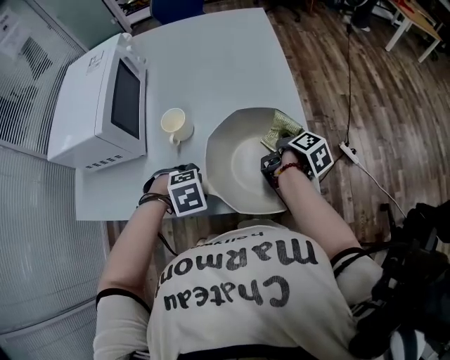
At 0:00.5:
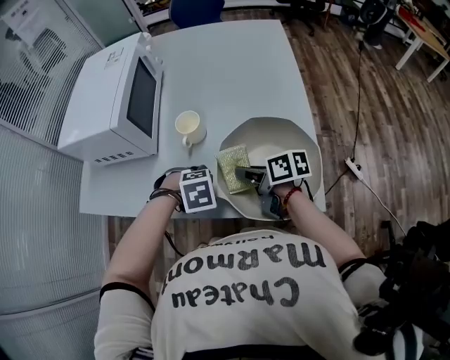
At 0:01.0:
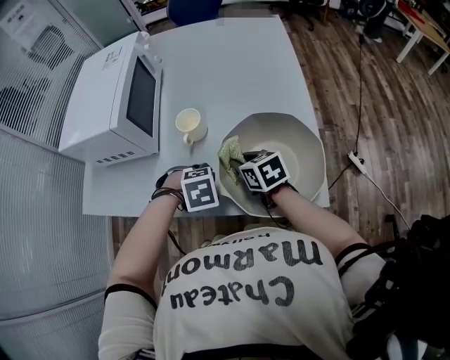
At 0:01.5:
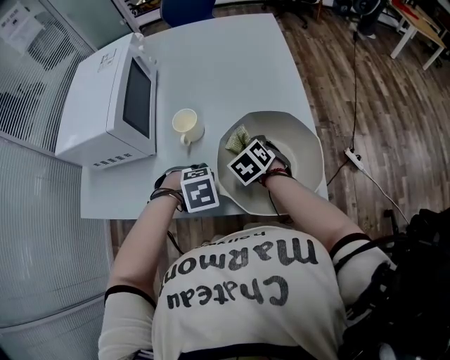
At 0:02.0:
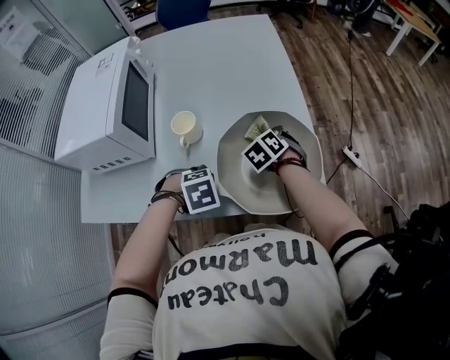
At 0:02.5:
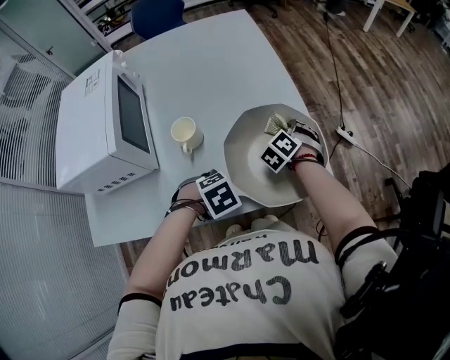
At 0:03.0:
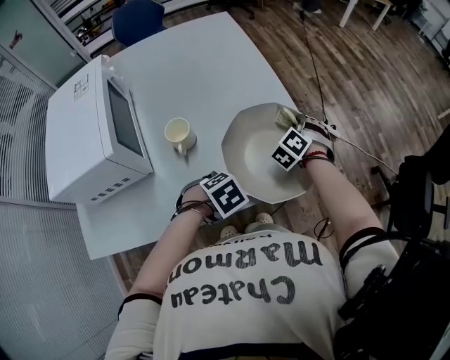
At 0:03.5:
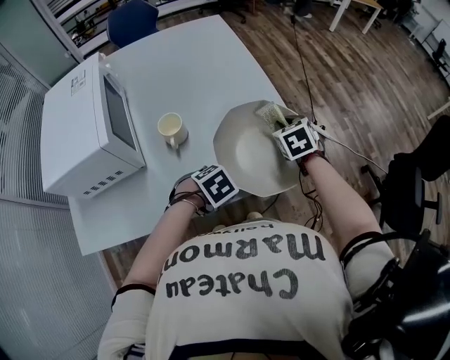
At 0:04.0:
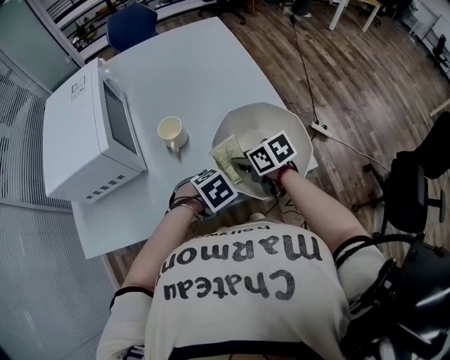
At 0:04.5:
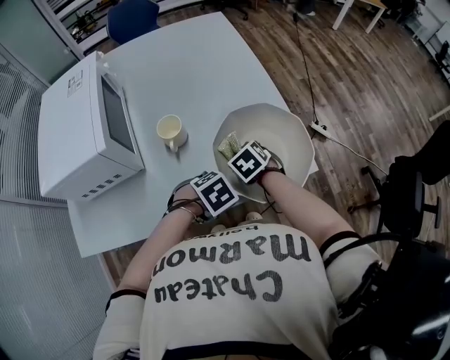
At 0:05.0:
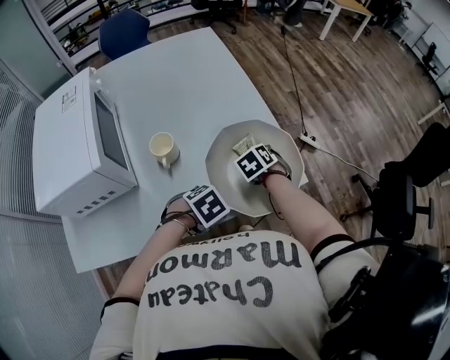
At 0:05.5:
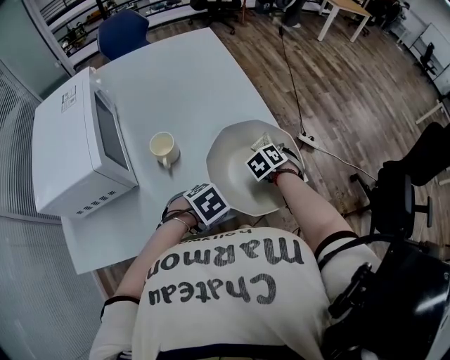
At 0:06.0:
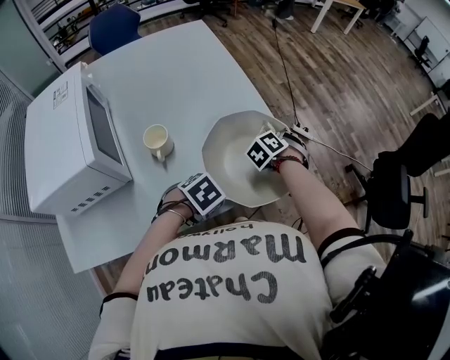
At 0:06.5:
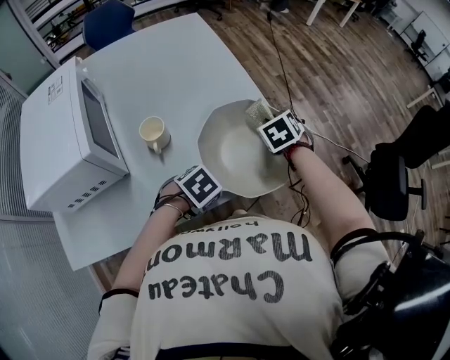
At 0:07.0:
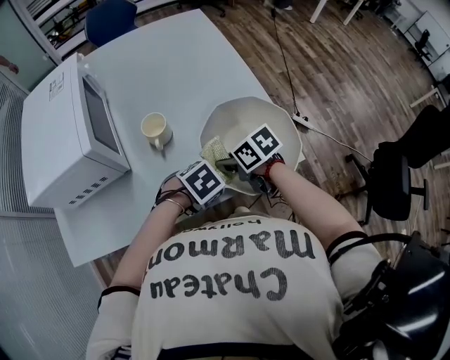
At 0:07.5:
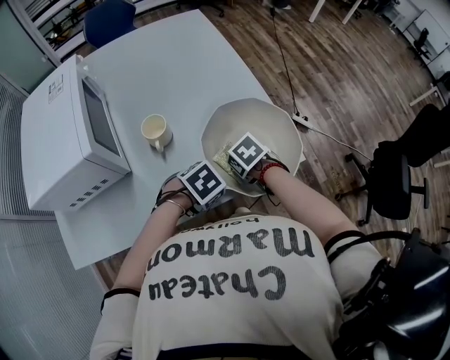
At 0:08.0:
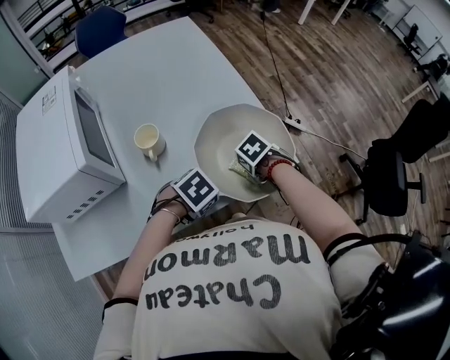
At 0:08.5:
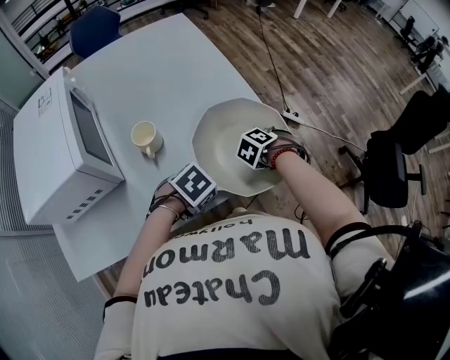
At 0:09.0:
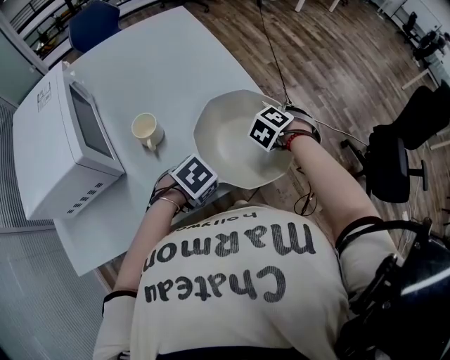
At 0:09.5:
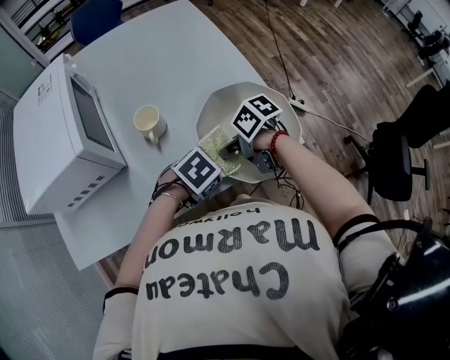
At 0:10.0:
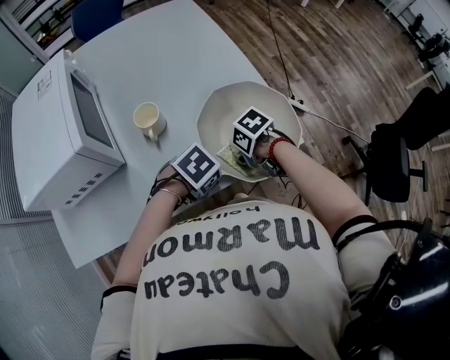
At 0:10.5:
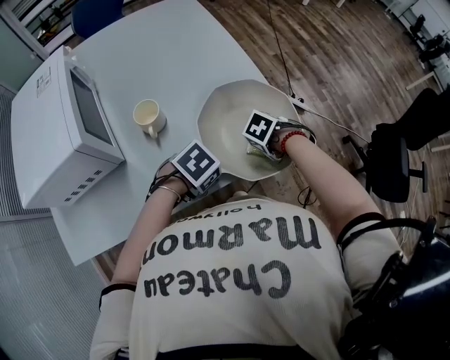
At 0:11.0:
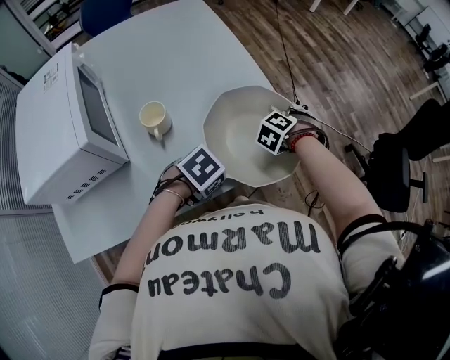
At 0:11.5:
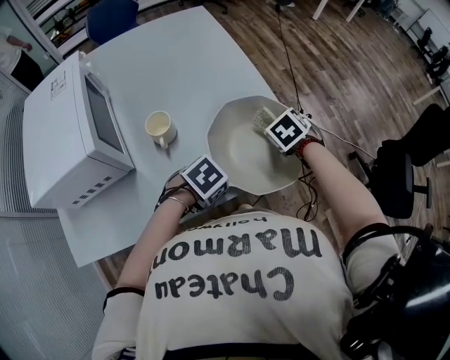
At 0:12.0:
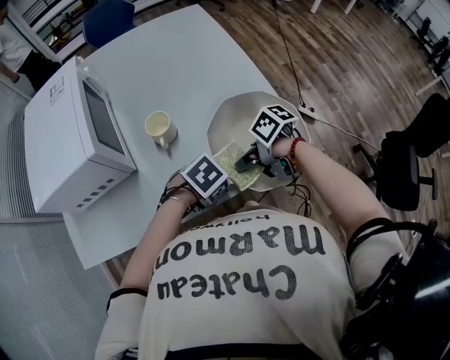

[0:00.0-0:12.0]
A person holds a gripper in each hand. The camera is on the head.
0:00.0 to 0:02.0: The right gripper twists approximately 110 degrees counterclockwise, seen from behind.
0:02.0 to 0:04.0: The right gripper moves some 15 cm, and swivels roughly 60 degrees.
0:04.0 to 0:06.0: The right gripper ends up about 20 cm from where it was, and rotates about 70 degrees.
0:06.0 to 0:08.0: The right gripper goes upward and returns, roughly 5 cm each way, and points its fingers roughly 30 degrees further downward.
0:10.0 to 0:12.0: The right gripper is displaced upward by about 5 cm, and points its fingers approximately 30 degrees further upward.

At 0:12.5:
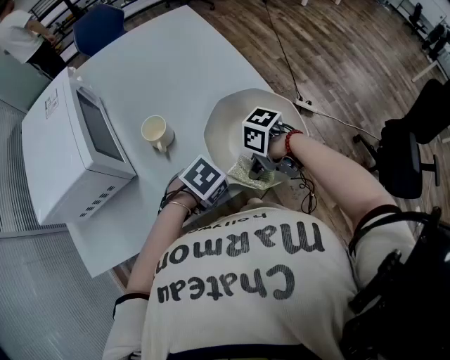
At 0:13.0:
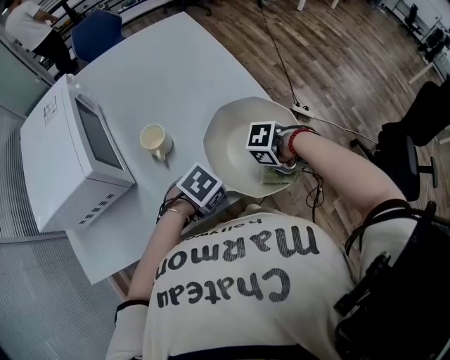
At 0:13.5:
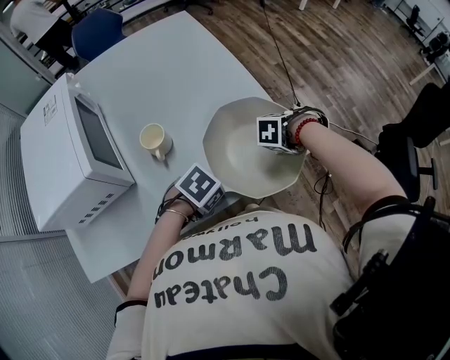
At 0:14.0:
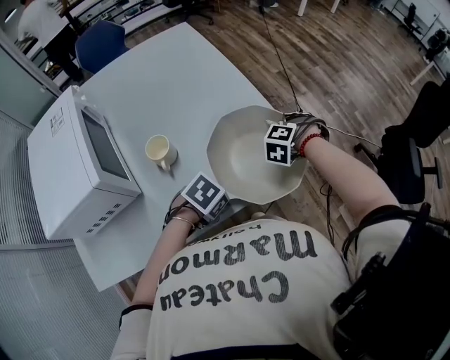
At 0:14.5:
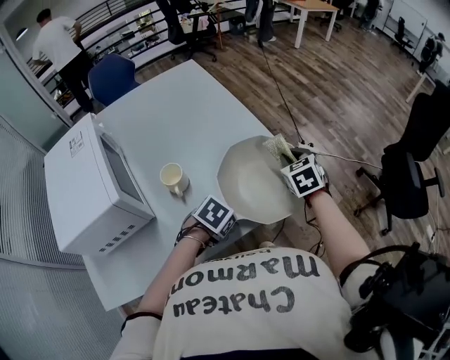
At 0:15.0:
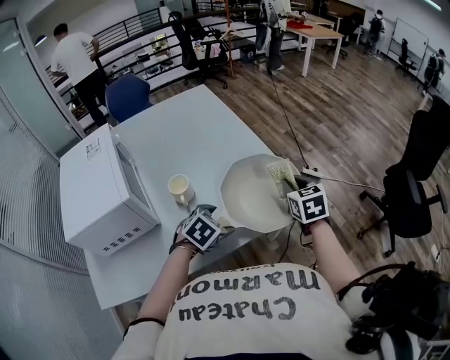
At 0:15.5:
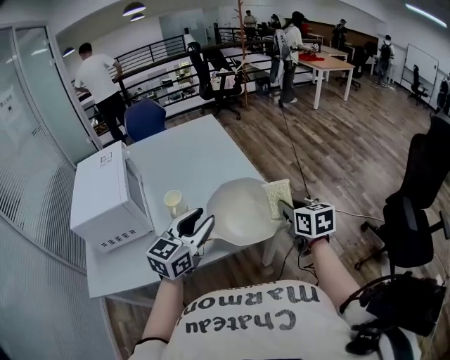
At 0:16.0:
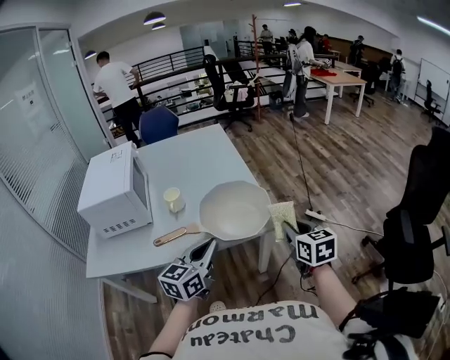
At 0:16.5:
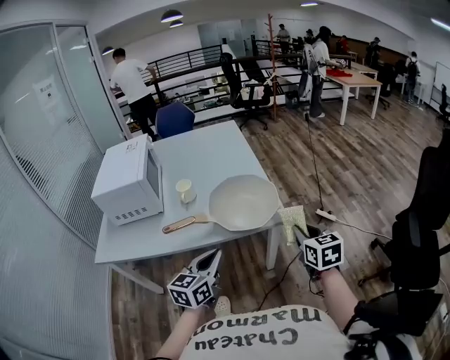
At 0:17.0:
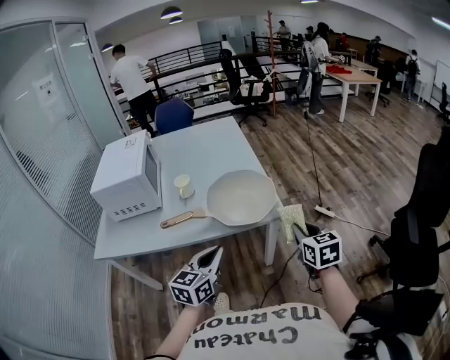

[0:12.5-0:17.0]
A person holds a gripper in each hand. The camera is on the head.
0:12.5 to 0:14.5: The right gripper changes place by some 20 cm, and rotates roughly 80 degrees.
0:14.5 to 0:17.0: The left gripper ends up roughly 25 cm from where it was, points its fingers approximately 60 degrees further upward, and closes up; the right gripper shifts by some 30 cm, and turns by approximately 30 degrees.

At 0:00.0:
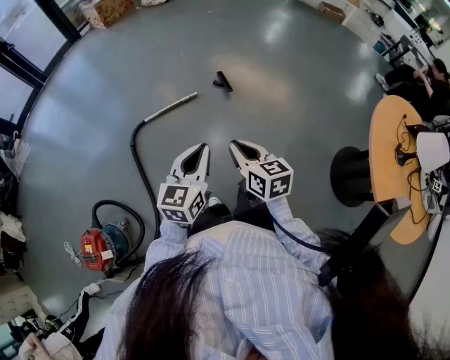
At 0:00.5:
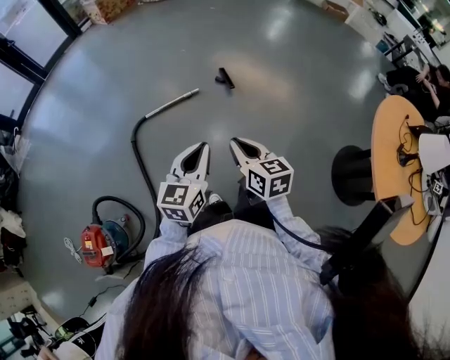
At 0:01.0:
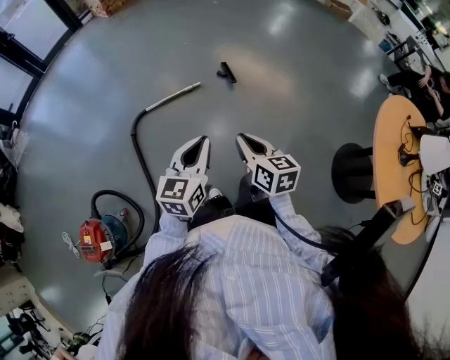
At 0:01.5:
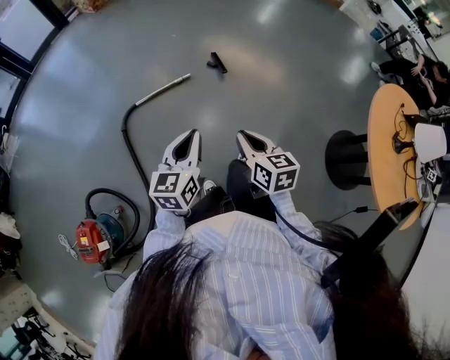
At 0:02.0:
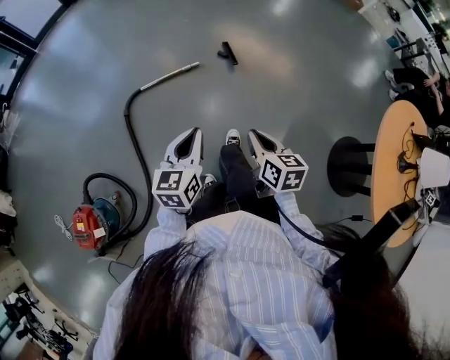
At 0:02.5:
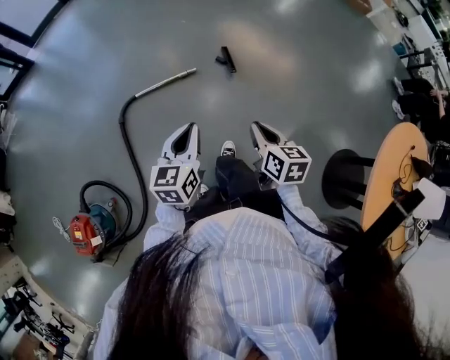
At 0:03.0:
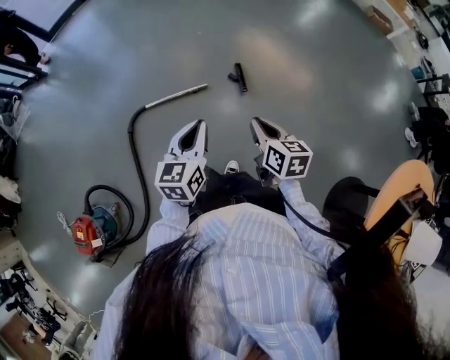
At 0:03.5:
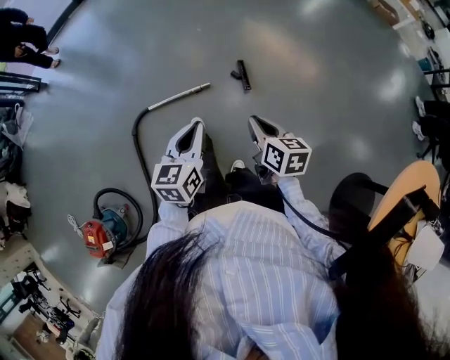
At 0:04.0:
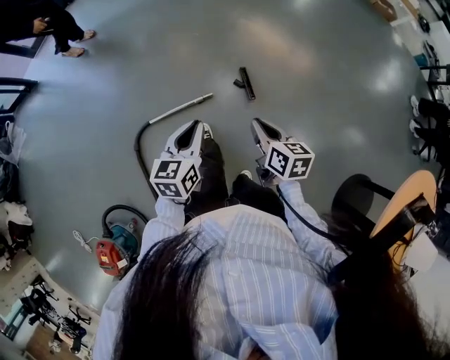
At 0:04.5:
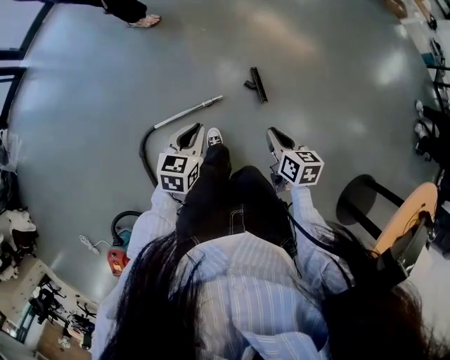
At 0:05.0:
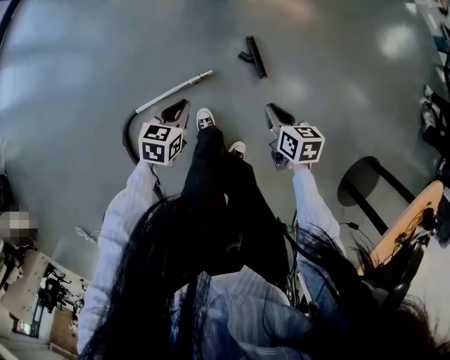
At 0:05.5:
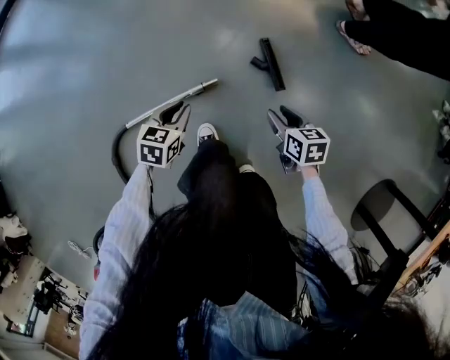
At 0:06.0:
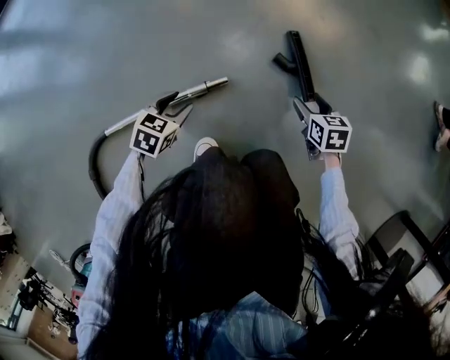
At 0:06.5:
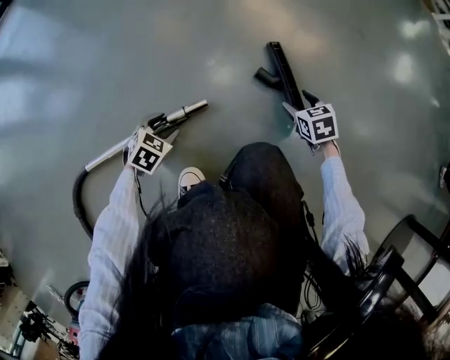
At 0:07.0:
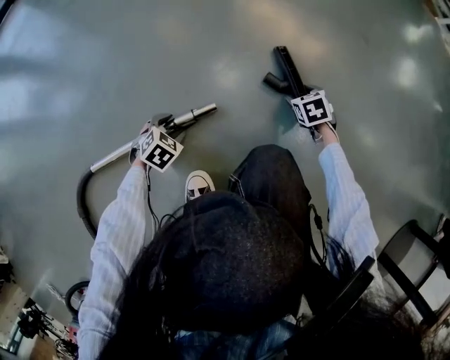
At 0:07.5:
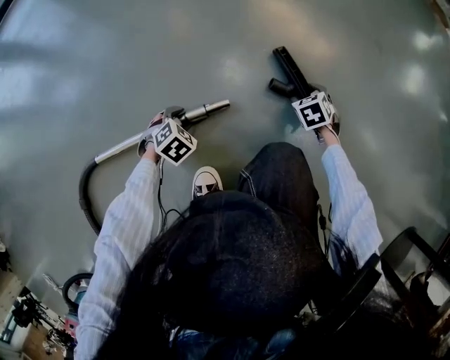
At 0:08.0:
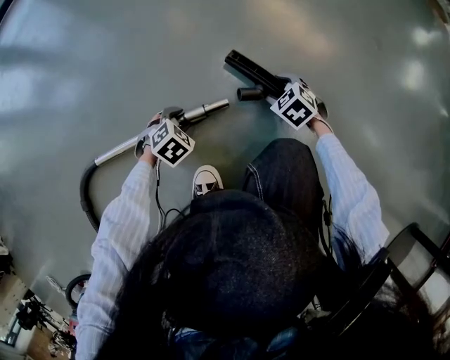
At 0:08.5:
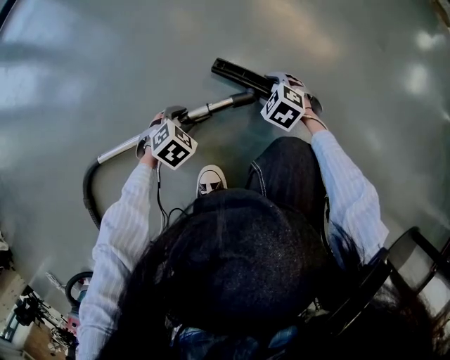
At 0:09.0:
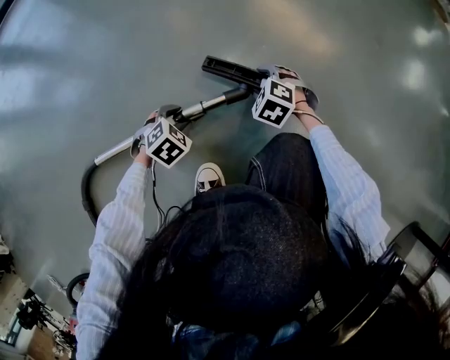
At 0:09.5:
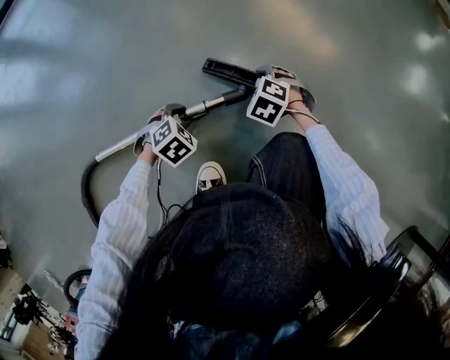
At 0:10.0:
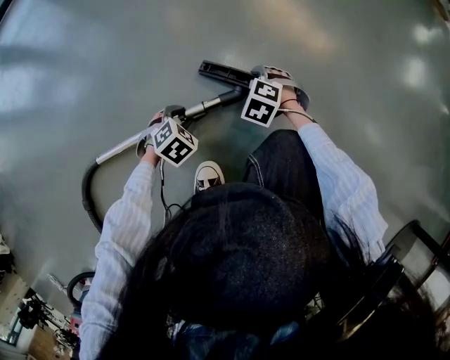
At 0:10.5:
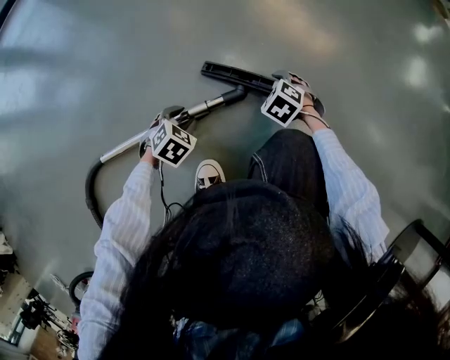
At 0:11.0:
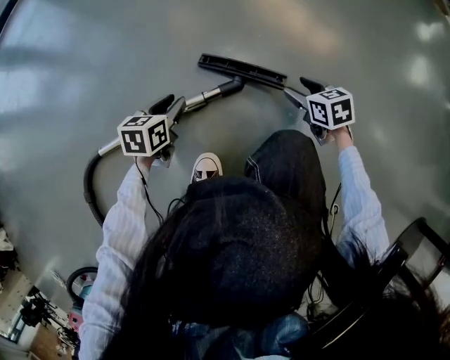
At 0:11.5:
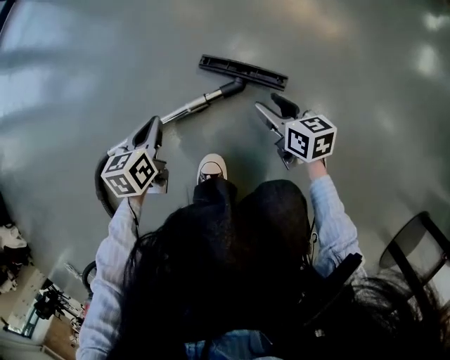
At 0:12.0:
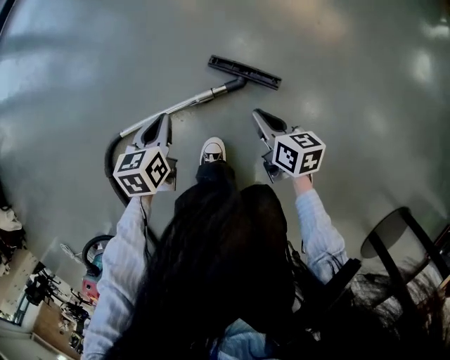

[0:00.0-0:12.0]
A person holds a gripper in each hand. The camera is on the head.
0:00.0 to 0:02.0: The right gripper moves downward, approximately 5 cm. The left gripper is displaced downward and forward by some 5 cm.
0:02.0 to 0:04.0: Both grippers are carried forward, about 40 cm.
0:04.0 to 0:06.0: The grippers both shift downward by roughly 70 cm. The right gripper swivels roughly 30 degrees, and opens up; the left gripper turns by roughly 40 degrees, and opens its fingers.
0:06.0 to 0:08.0: The right gripper heads downward, to the left and forward, covering approximately 15 cm, and rotates around the line of its fingers by some 50 degrees, counterclockwise from behind. The left gripper moves downward, about 15 cm, and swivels roughly 30 degrees.
0:08.0 to 0:10.0: The right gripper ends up approximately 5 cm from where it was, and rotates about 20 degrees.
0:10.0 to 0:12.0: Both grippers move upward, some 25 cm. The right gripper rotates around the line of its fingers by roughly 70 degrees, clockwise from behind, and closes up, while the left gripper rotates around the line of its fingers by some 60 degrees, counterclockwise from behind, and closes.
